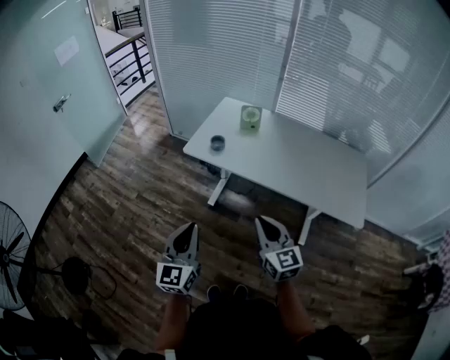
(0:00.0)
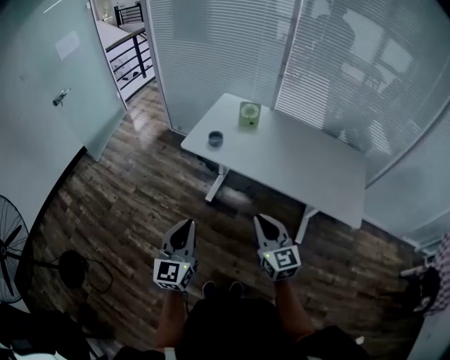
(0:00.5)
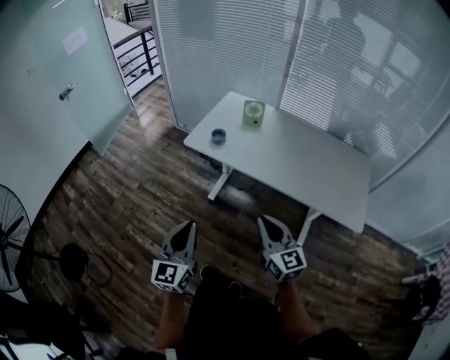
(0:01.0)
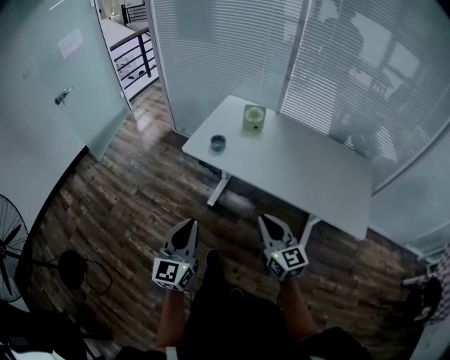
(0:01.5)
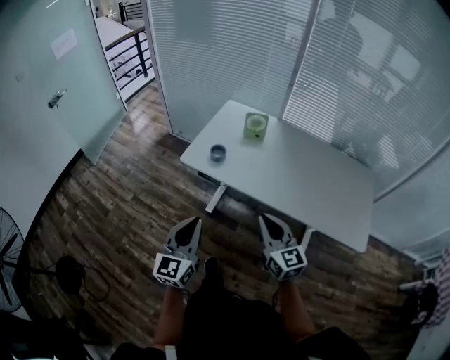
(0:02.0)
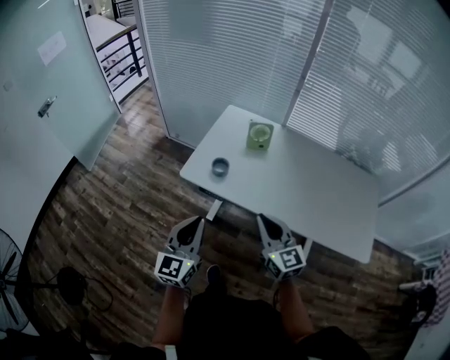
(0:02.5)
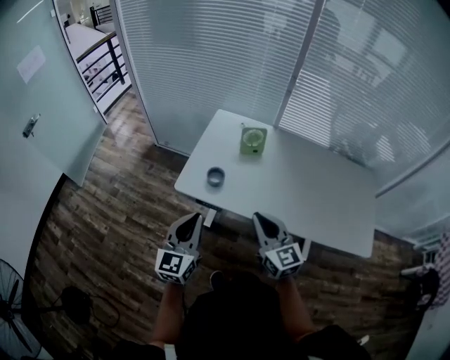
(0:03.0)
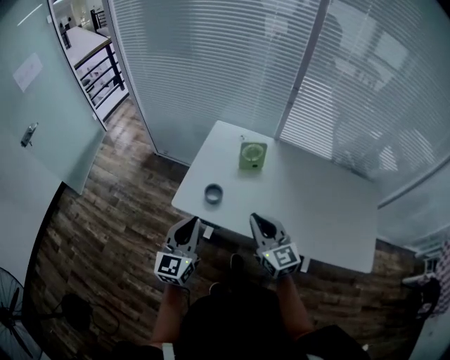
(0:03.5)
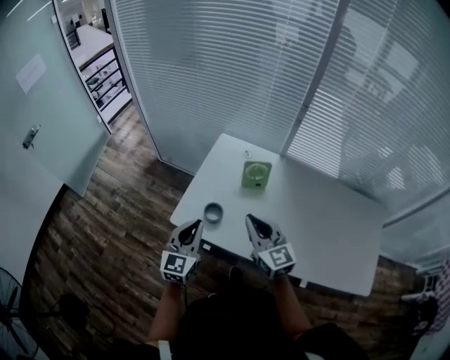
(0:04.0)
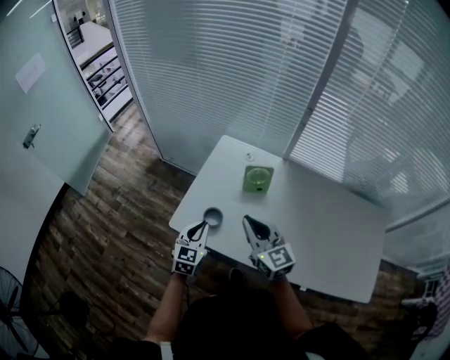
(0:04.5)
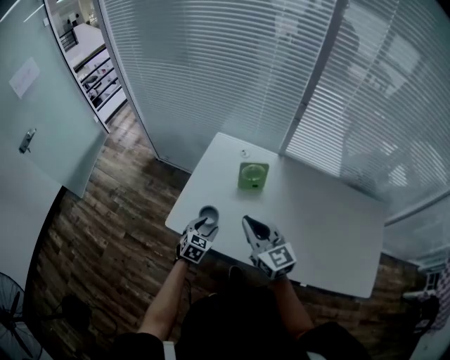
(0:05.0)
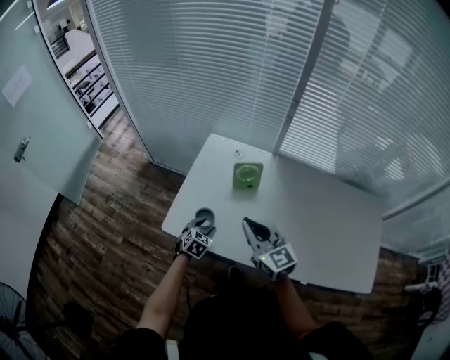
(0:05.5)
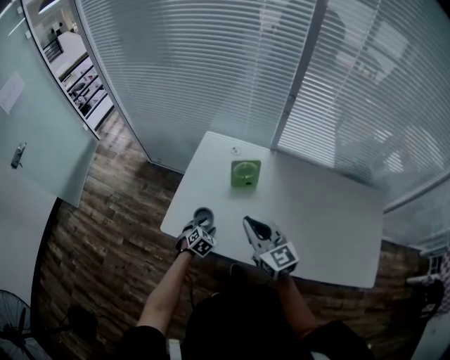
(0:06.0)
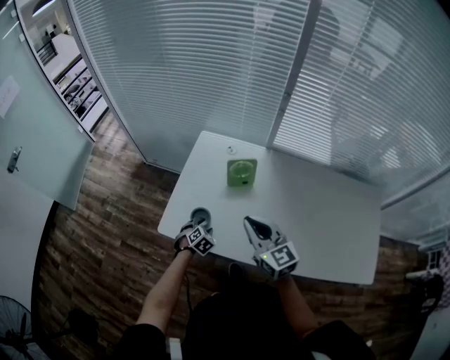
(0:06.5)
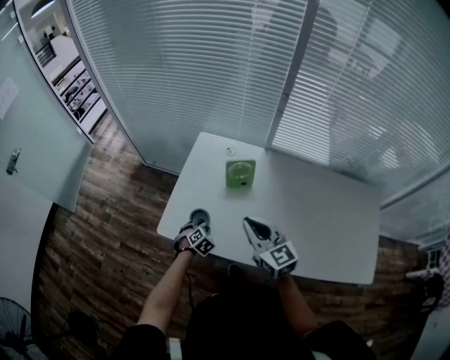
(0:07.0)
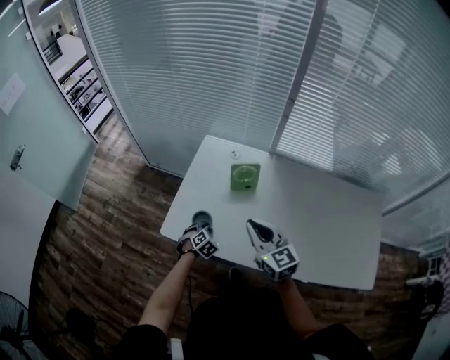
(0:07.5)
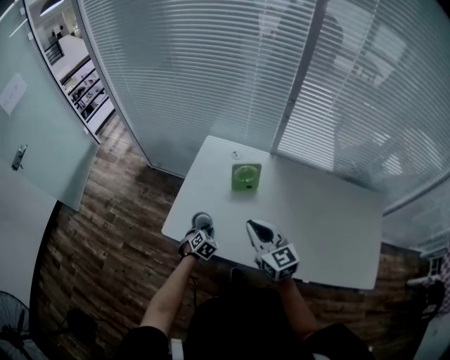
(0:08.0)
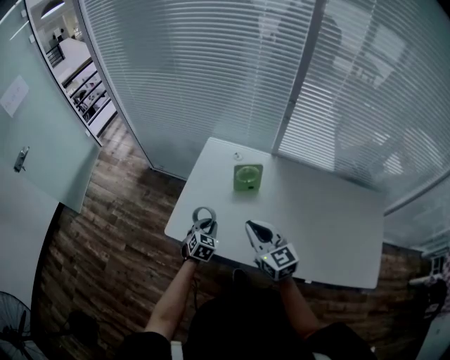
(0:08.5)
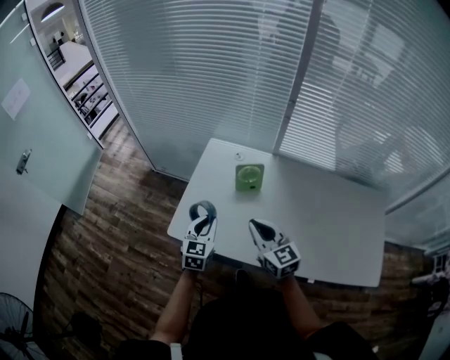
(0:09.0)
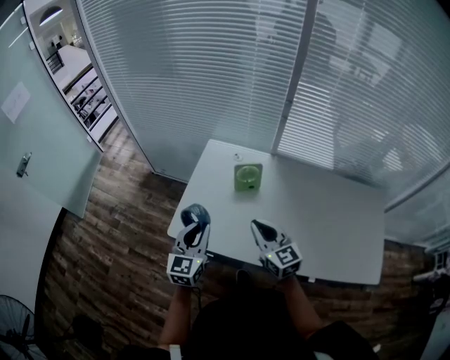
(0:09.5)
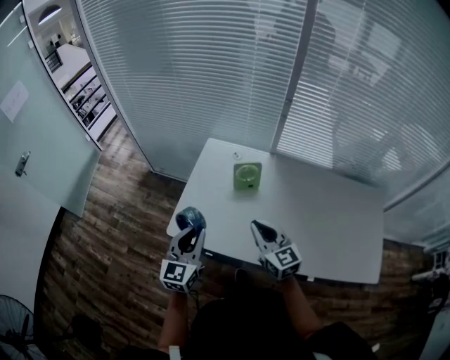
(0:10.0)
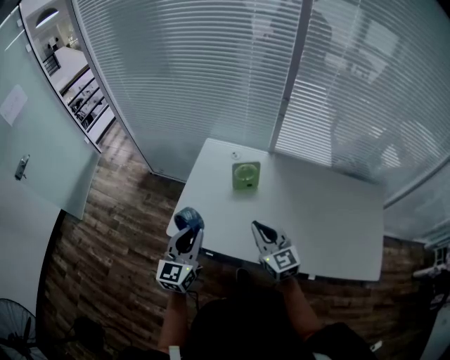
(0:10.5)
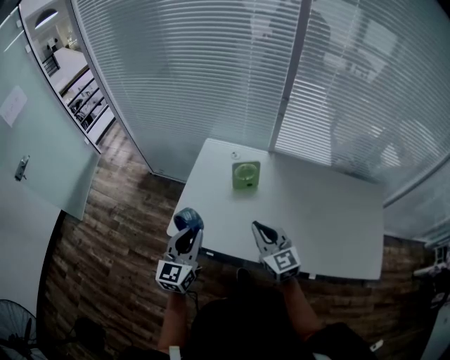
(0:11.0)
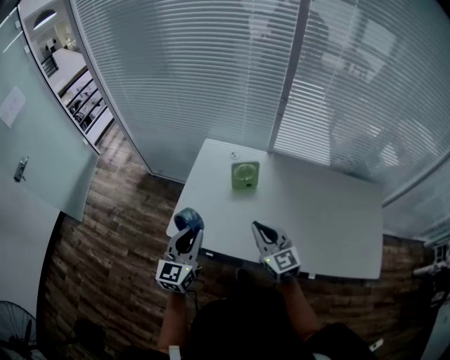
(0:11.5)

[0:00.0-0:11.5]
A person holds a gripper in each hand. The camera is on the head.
0:00.0 to 0:02.0: The grippers both shift forward by approximately 10 cm.
0:02.0 to 0:04.0: The grippers both shift forward by approximately 30 cm.
0:04.0 to 0:06.0: The left gripper is displaced downward by about 25 cm, angles its fingers downward, by approximately 50 degrees, and opens up.
0:06.0 to 0:07.5: The left gripper closes.
0:07.5 to 0:09.5: The left gripper travels upward by some 30 cm, and points its fingers about 50 degrees further upward.
0:09.5 to 0:11.5: The grippers stay close to where they were, moving slightly.

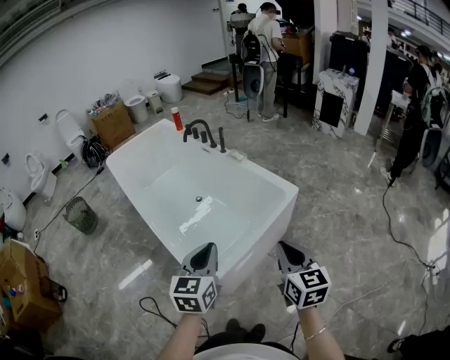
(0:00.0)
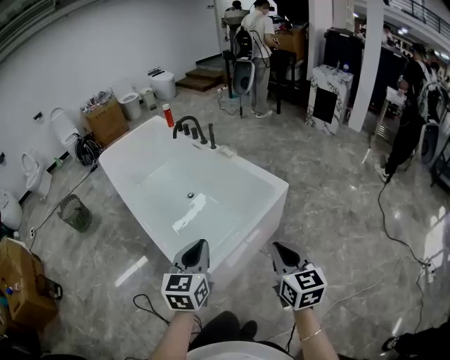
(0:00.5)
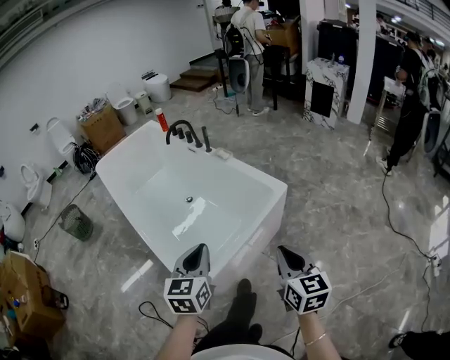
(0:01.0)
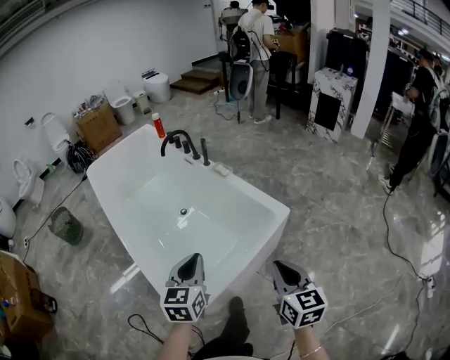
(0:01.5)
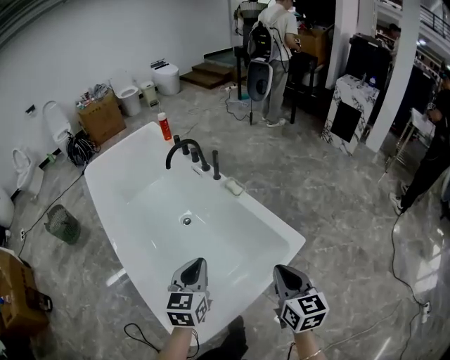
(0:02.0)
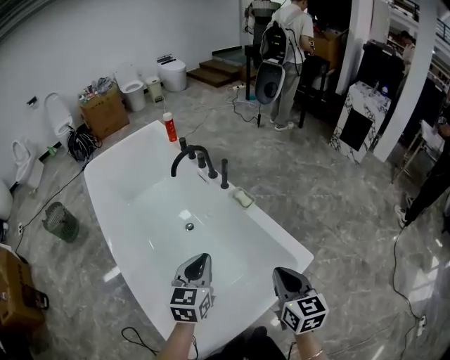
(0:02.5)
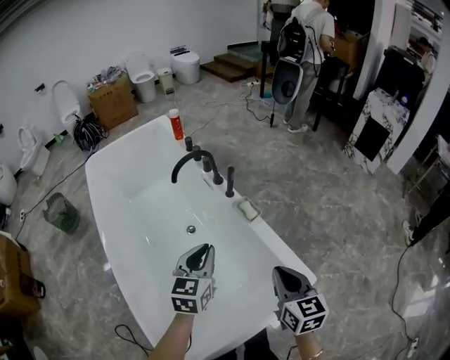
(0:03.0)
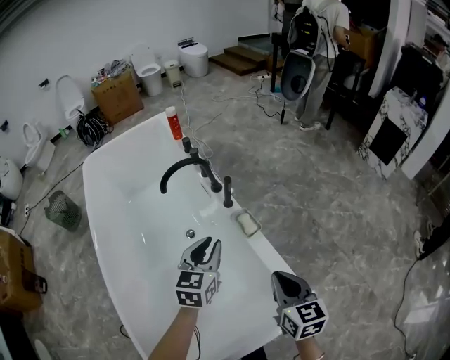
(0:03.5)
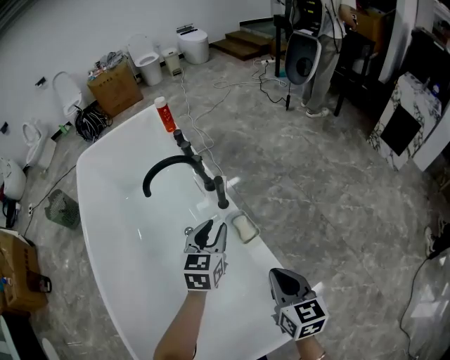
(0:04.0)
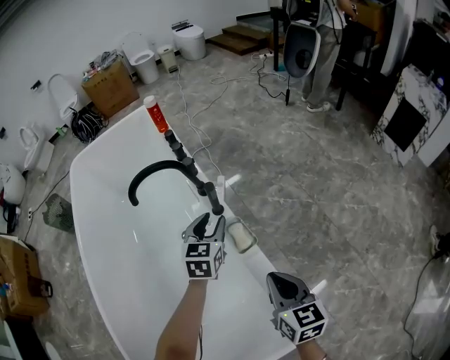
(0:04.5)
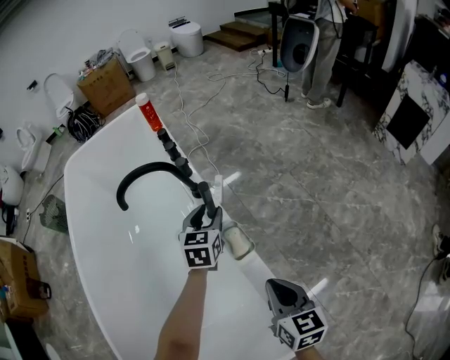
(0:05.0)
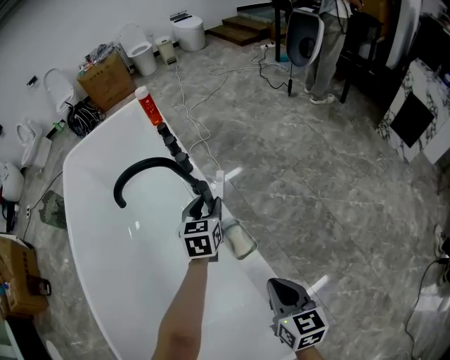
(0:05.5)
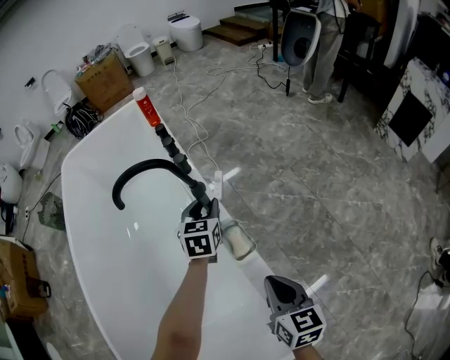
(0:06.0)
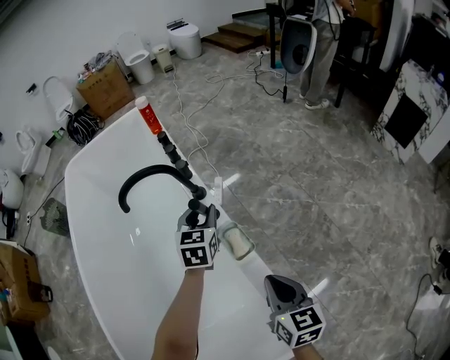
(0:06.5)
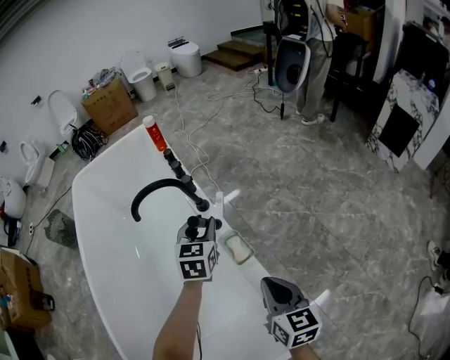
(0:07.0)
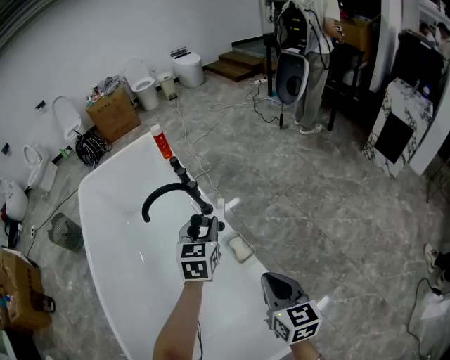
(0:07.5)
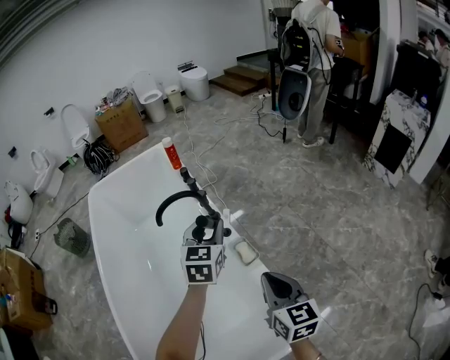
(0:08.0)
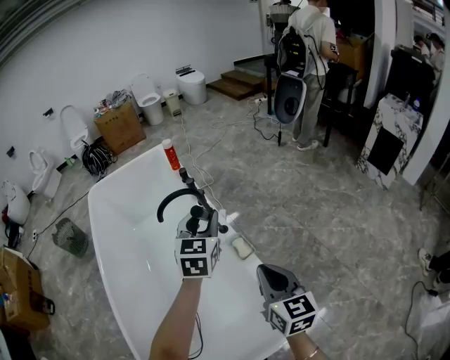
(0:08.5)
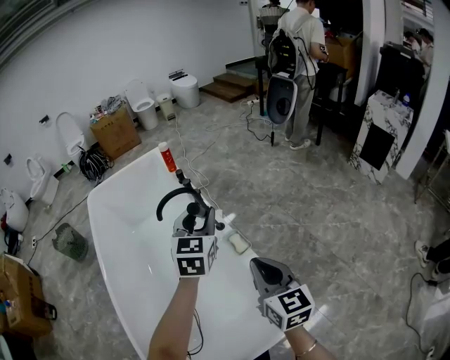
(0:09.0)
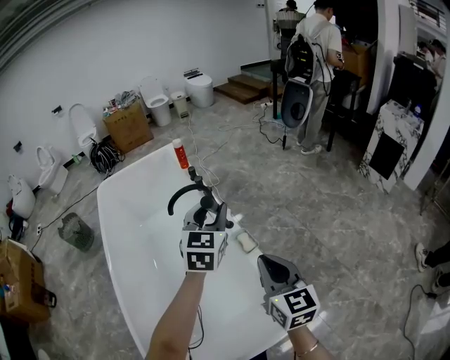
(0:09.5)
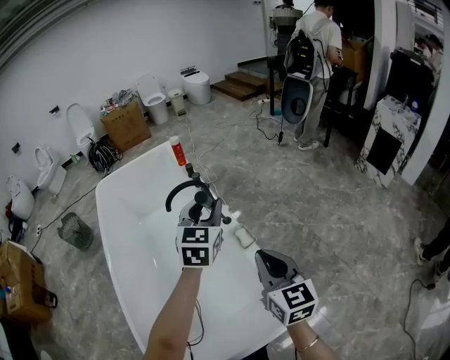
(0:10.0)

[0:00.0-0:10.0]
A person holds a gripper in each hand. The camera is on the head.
0:00.0 to 0:02.0: The pair of grippers is taken forward, some 50 cm.
0:02.0 to 0:04.0: Both grippers are carried forward, roughly 60 cm. The left gripper opens.
0:04.0 to 0:06.0: The left gripper is displaced forward and downward by some 25 cm, while the right gripper is displaced downward and forward by roughly 20 cm.
0:06.0 to 0:08.0: The grippers both shift upward and backward by approximately 35 cm.
0:08.0 to 0:10.0: Both grippers move upward and backward, approximately 20 cm.

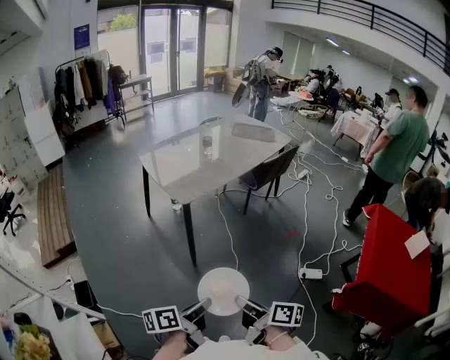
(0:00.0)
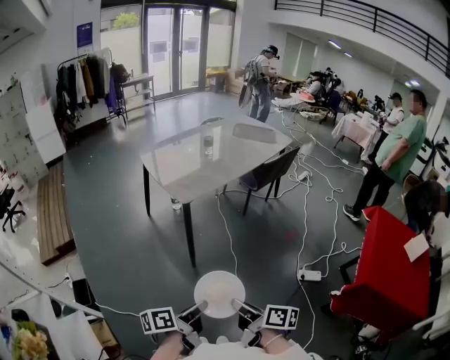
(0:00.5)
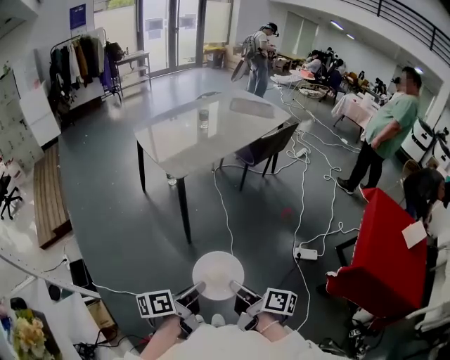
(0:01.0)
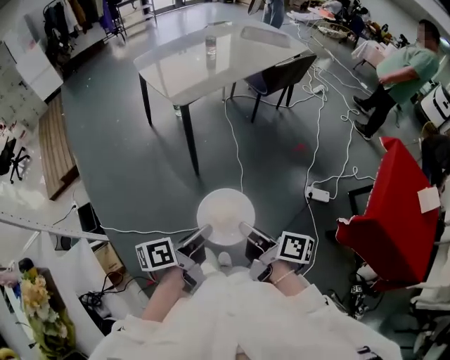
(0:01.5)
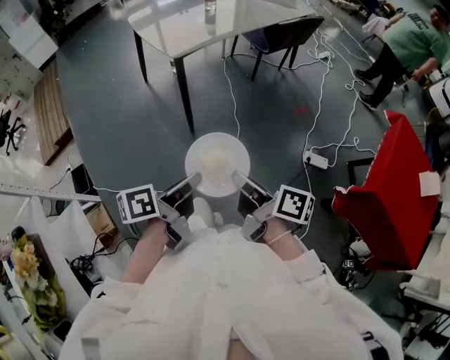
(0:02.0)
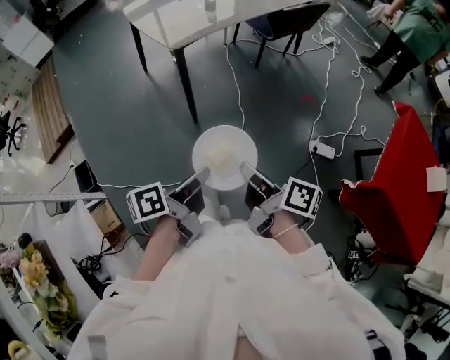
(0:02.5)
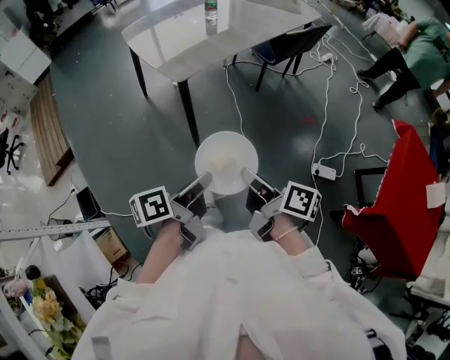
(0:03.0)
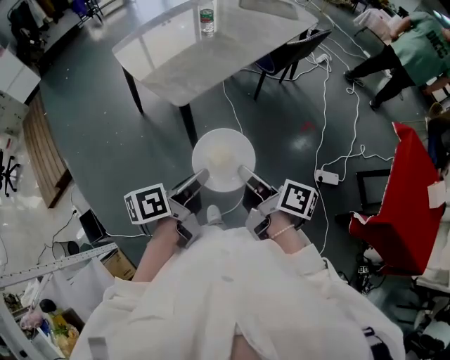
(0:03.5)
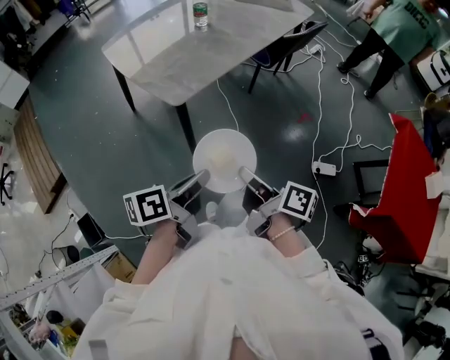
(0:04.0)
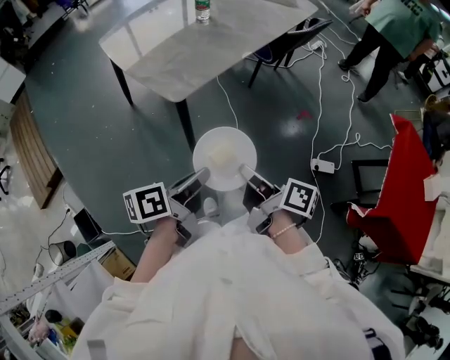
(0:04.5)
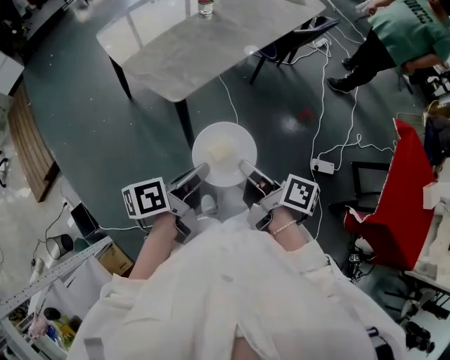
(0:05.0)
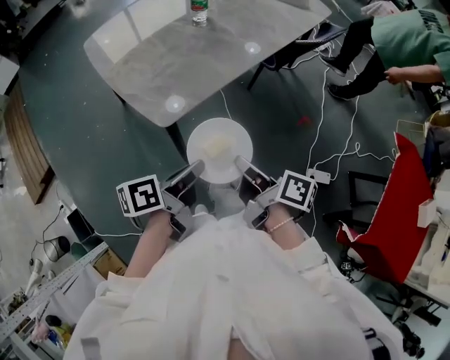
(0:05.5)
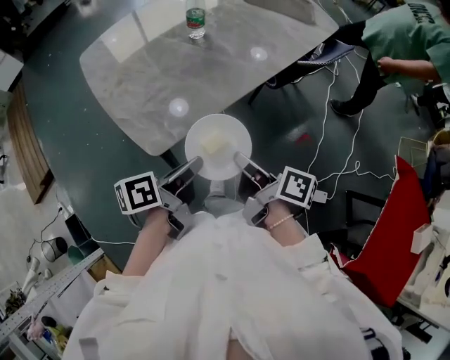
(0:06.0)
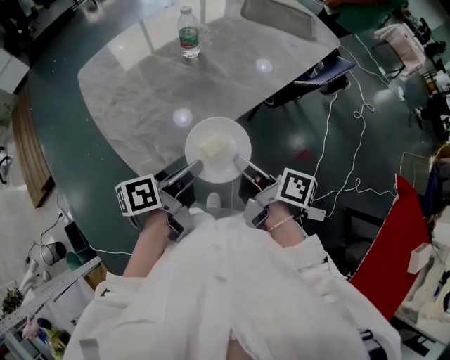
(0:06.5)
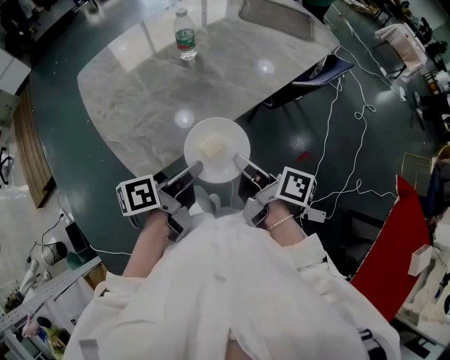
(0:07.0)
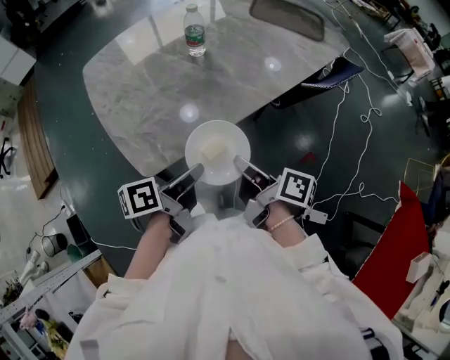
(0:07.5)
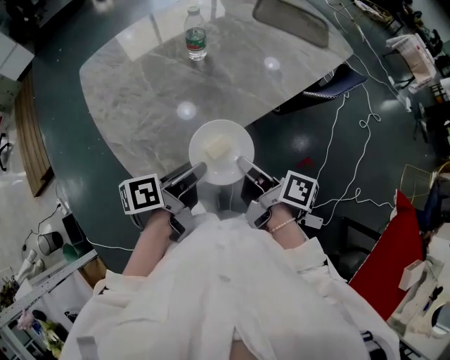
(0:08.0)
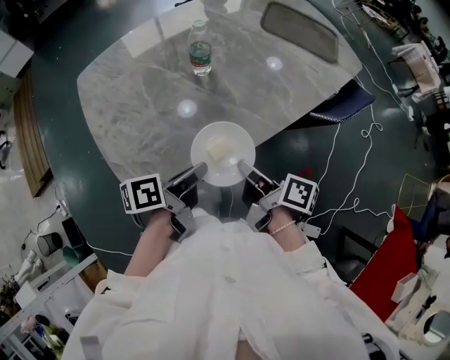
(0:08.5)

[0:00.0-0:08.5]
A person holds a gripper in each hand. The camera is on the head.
0:00.0 to 0:02.0: The right gripper moves approximately 5 cm.
0:02.0 to 0:04.0: The grippers both shift forward by approximately 25 cm.
0:04.0 to 0:06.5: Both grippers travel together forward, some 35 cm.
0:06.5 to 0:08.5: The grippers both shift forward by some 10 cm.
